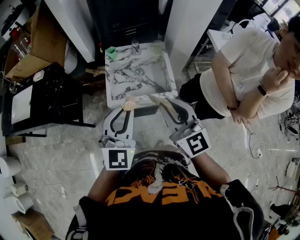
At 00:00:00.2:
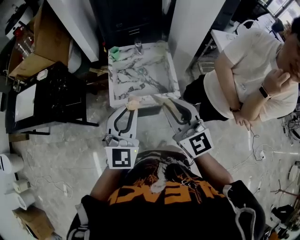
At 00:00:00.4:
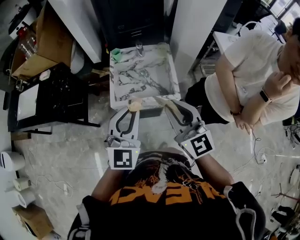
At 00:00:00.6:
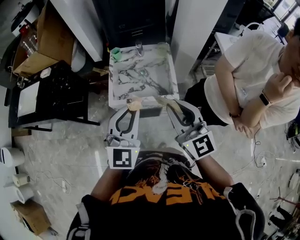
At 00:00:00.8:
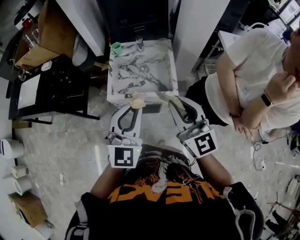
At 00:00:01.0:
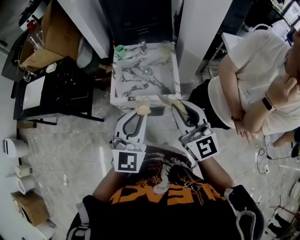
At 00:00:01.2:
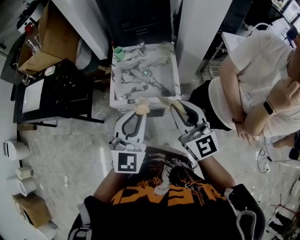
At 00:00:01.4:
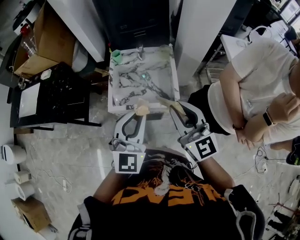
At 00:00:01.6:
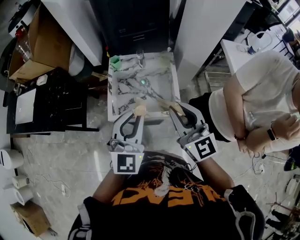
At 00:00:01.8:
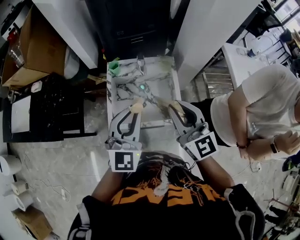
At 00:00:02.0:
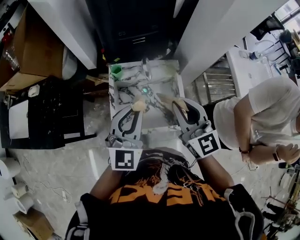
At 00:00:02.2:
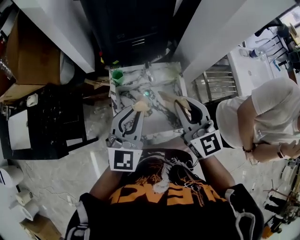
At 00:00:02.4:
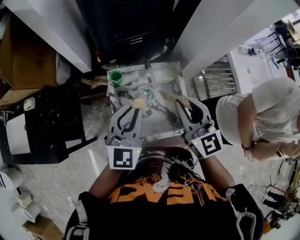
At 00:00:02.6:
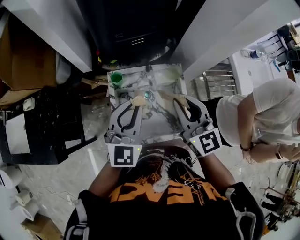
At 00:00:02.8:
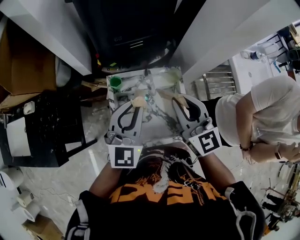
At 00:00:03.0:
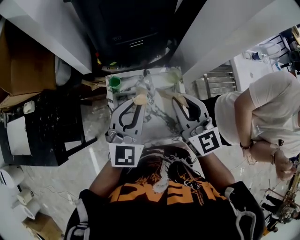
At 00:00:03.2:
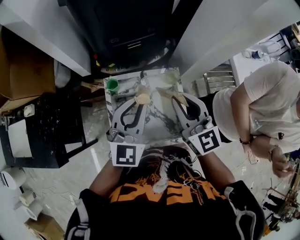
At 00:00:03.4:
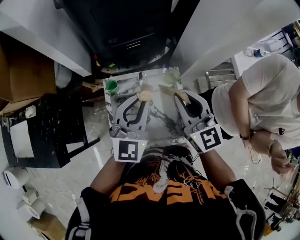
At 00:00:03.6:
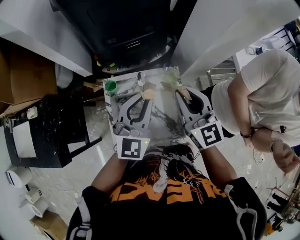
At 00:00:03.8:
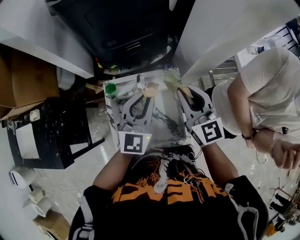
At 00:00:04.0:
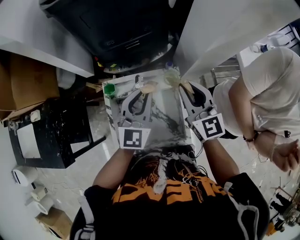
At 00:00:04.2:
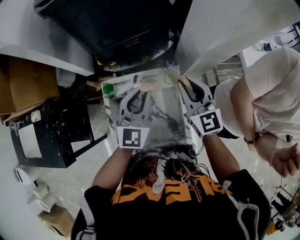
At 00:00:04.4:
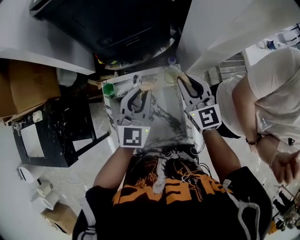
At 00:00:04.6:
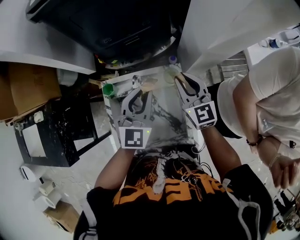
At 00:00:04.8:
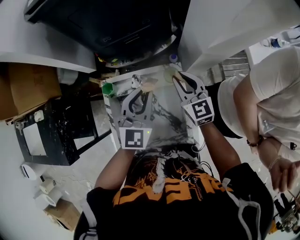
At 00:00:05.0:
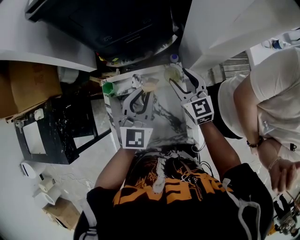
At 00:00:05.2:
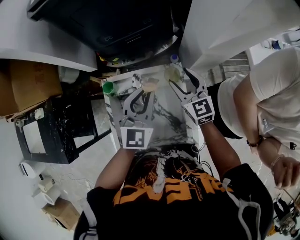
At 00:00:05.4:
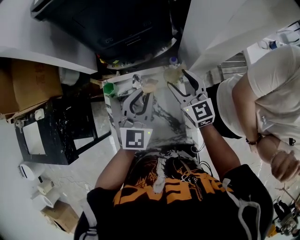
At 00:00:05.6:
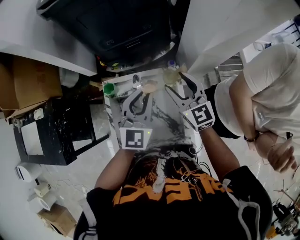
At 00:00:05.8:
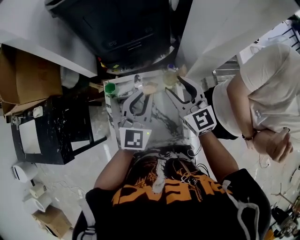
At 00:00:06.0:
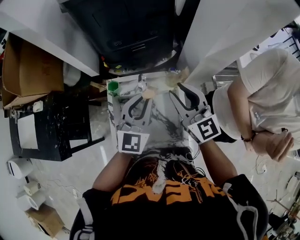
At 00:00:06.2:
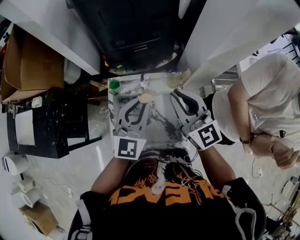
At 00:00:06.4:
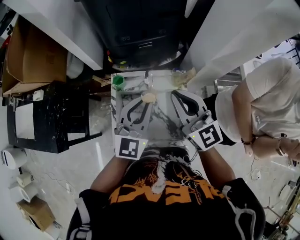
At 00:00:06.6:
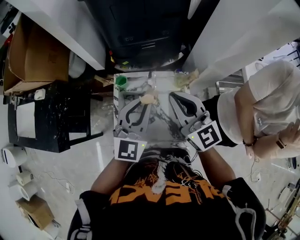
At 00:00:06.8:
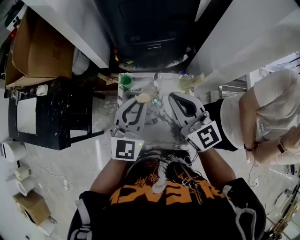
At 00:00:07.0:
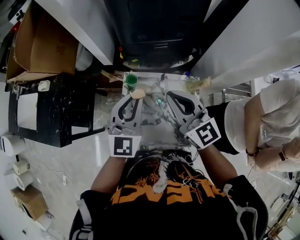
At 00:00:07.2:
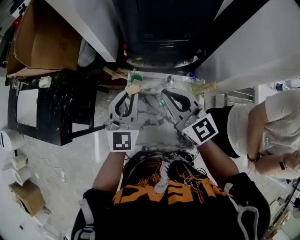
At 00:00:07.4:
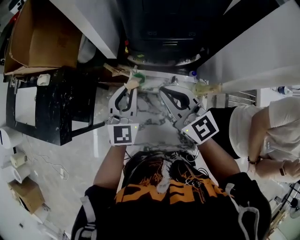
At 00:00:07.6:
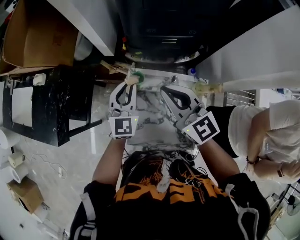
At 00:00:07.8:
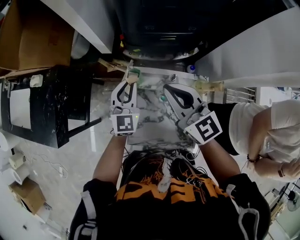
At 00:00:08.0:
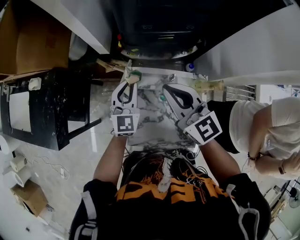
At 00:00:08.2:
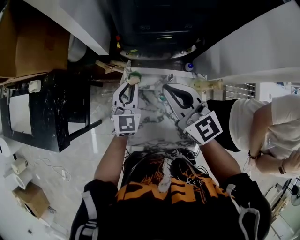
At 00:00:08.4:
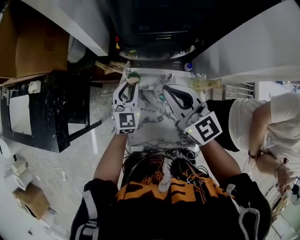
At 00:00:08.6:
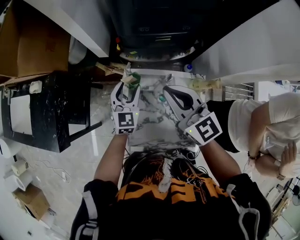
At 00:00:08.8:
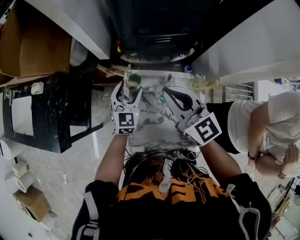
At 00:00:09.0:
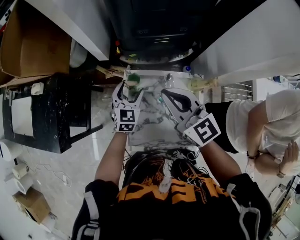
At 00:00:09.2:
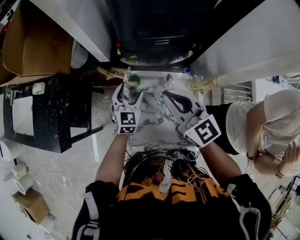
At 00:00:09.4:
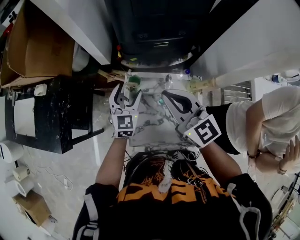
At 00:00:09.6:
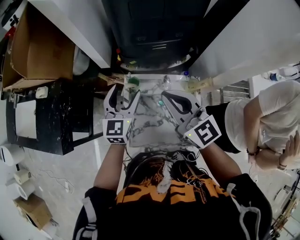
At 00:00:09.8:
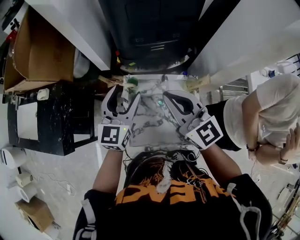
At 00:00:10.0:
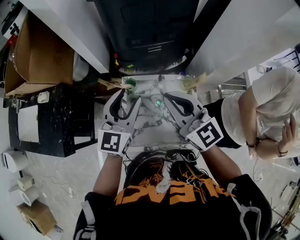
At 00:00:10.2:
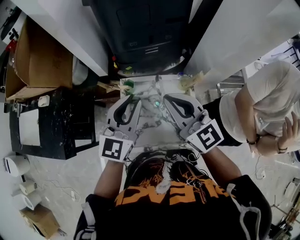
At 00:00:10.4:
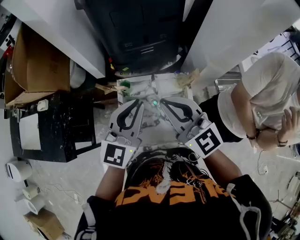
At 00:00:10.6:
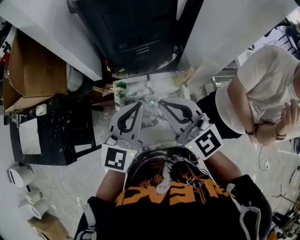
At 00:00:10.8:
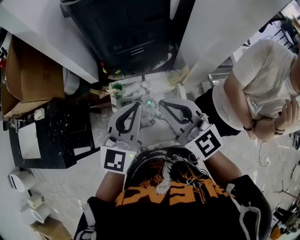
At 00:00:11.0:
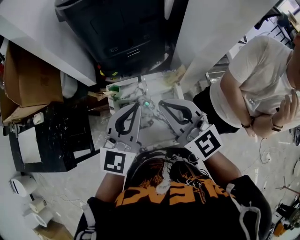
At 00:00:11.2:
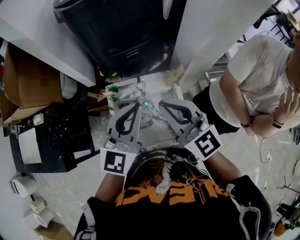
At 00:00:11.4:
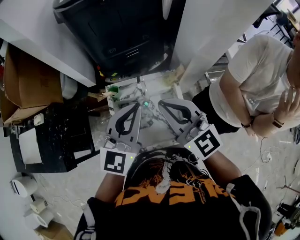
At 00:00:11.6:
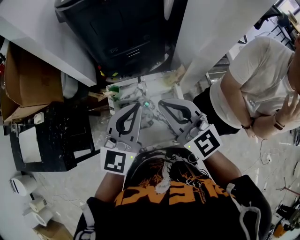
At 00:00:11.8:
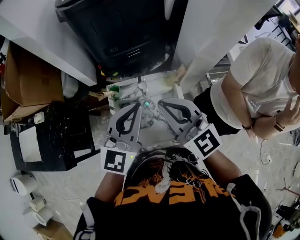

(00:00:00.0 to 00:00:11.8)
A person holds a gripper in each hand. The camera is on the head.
00:00:00.0 - 00:00:01.4: The grippers both shift to the right by about 10 cm.
00:00:01.4 - 00:00:03.0: Both grippers move forward, about 30 cm.
00:00:03.0 - 00:00:04.4: Both grippers move forward, to the right and downward, some 20 cm.
00:00:04.4 - 00:00:06.0: The right gripper heads upward, backward and to the left, covering some 10 cm, and opens, then closes once more. Meanwhile the left gripper travels backward by about 5 cm.
00:00:06.0 - 00:00:07.4: The left gripper shifts about 20 cm to the left and forward, and swivels about 20 degrees, while the right gripper shifts approximately 20 cm to the left, swivels about 20 degrees, and closes.
00:00:07.4 - 00:00:08.8: The left gripper goes approximately 15 cm downward, and opens its fingers.
00:00:08.8 - 00:00:10.4: The right gripper goes about 15 cm backward and upward; the left gripper heads upward and backward, covering some 30 cm, swivels approximately 30 degrees, and closes up.
00:00:10.4 - 00:00:11.8: The left gripper shifts by about 5 cm.

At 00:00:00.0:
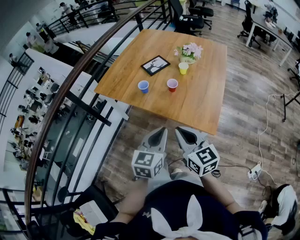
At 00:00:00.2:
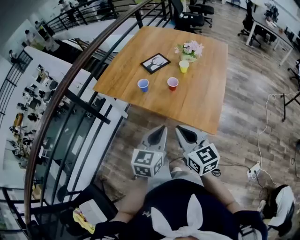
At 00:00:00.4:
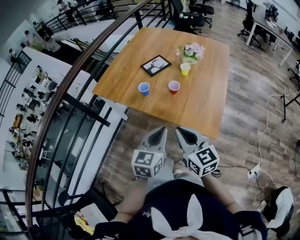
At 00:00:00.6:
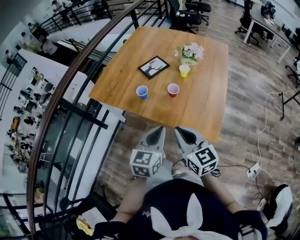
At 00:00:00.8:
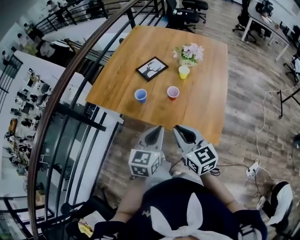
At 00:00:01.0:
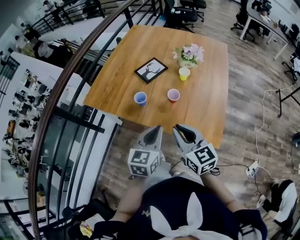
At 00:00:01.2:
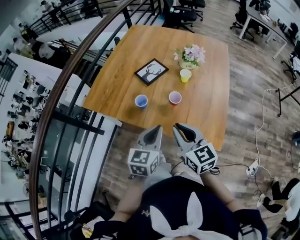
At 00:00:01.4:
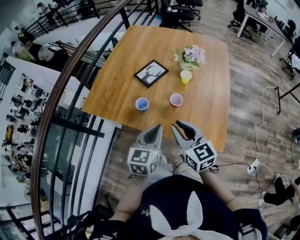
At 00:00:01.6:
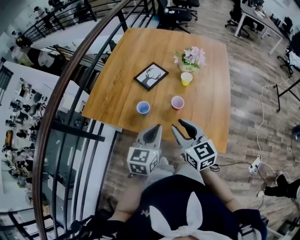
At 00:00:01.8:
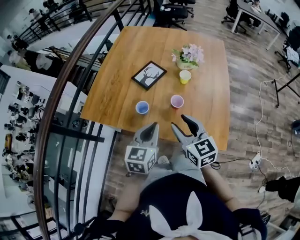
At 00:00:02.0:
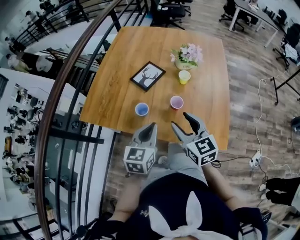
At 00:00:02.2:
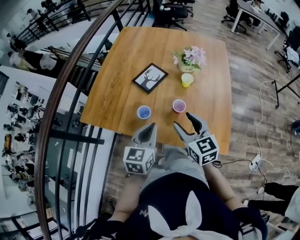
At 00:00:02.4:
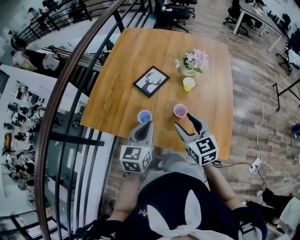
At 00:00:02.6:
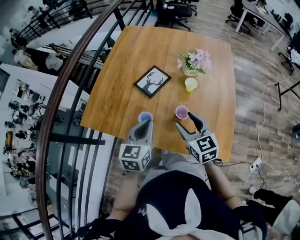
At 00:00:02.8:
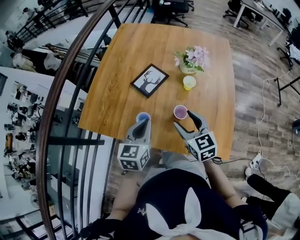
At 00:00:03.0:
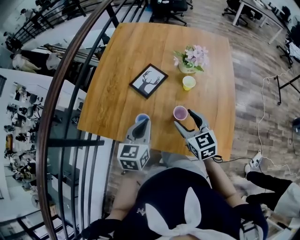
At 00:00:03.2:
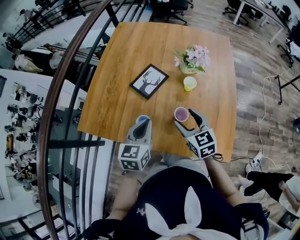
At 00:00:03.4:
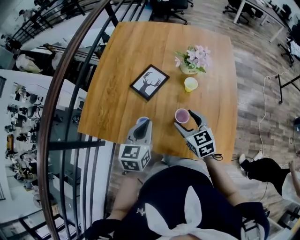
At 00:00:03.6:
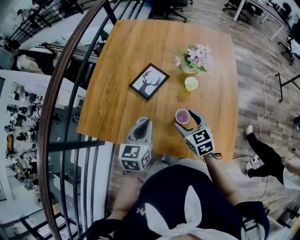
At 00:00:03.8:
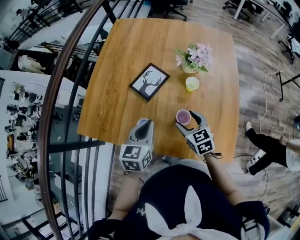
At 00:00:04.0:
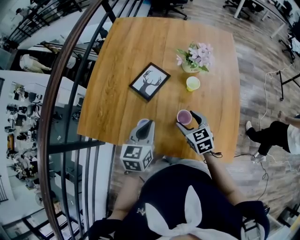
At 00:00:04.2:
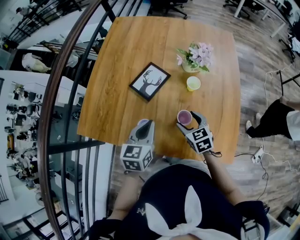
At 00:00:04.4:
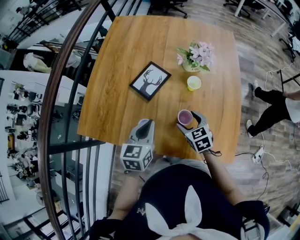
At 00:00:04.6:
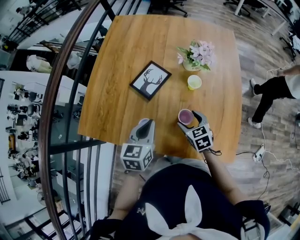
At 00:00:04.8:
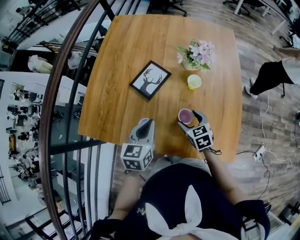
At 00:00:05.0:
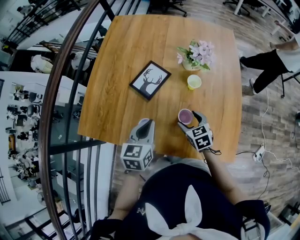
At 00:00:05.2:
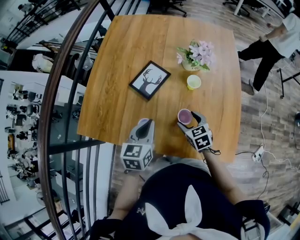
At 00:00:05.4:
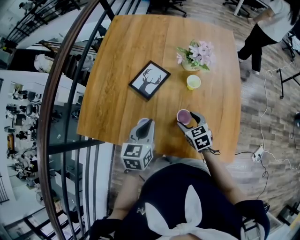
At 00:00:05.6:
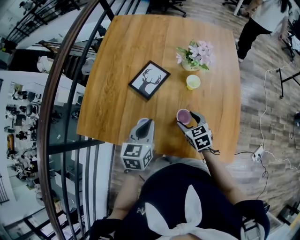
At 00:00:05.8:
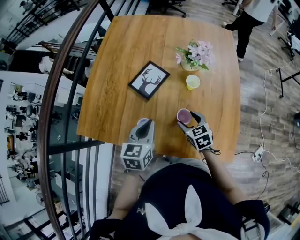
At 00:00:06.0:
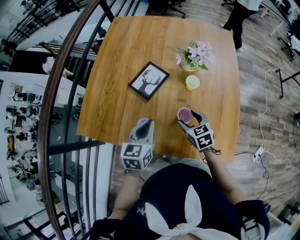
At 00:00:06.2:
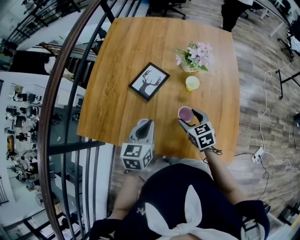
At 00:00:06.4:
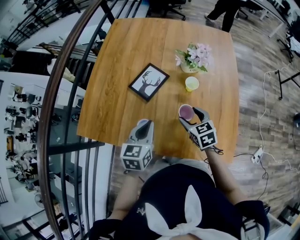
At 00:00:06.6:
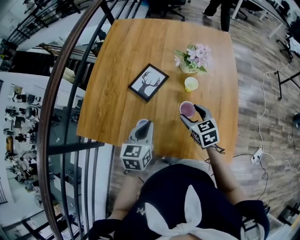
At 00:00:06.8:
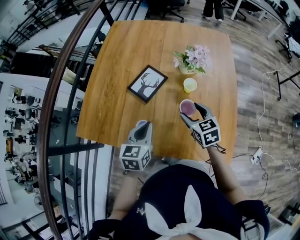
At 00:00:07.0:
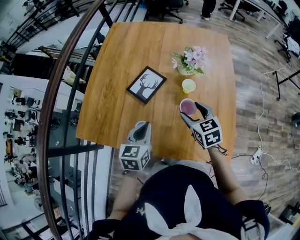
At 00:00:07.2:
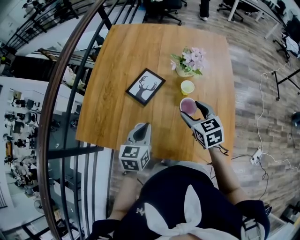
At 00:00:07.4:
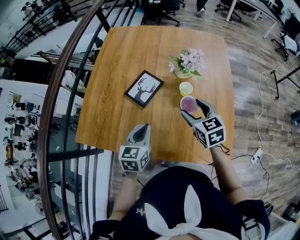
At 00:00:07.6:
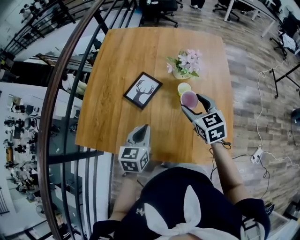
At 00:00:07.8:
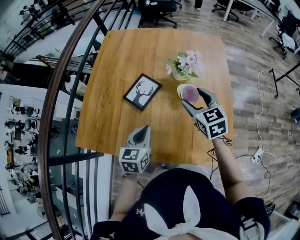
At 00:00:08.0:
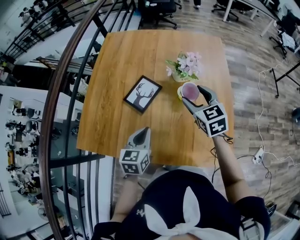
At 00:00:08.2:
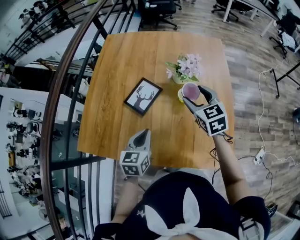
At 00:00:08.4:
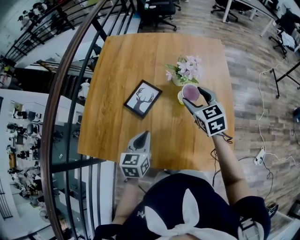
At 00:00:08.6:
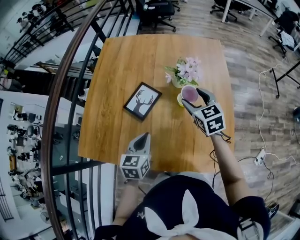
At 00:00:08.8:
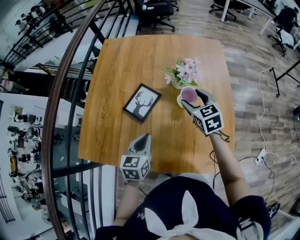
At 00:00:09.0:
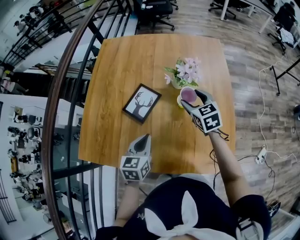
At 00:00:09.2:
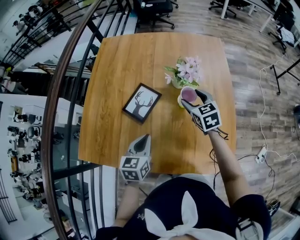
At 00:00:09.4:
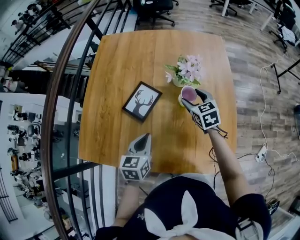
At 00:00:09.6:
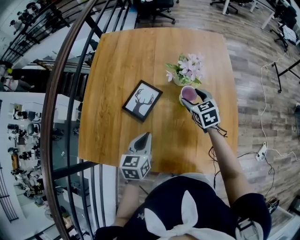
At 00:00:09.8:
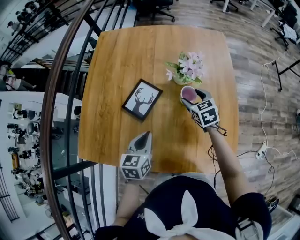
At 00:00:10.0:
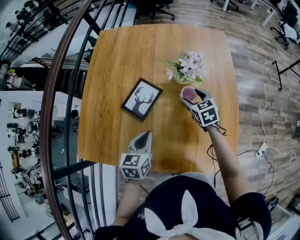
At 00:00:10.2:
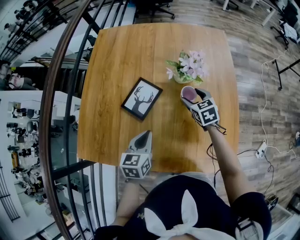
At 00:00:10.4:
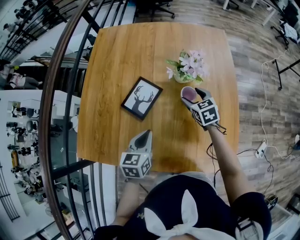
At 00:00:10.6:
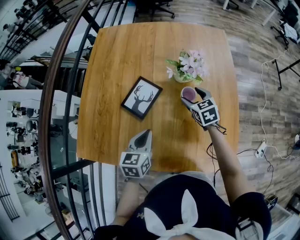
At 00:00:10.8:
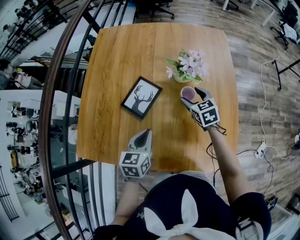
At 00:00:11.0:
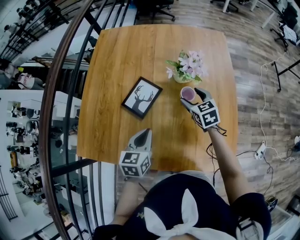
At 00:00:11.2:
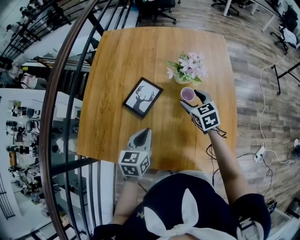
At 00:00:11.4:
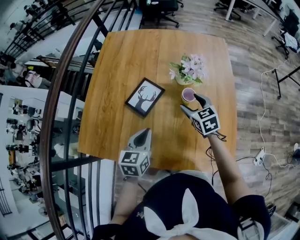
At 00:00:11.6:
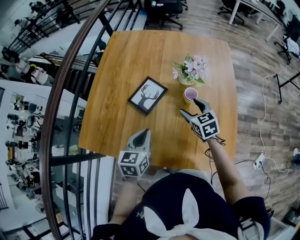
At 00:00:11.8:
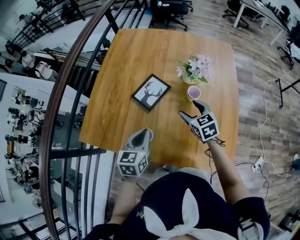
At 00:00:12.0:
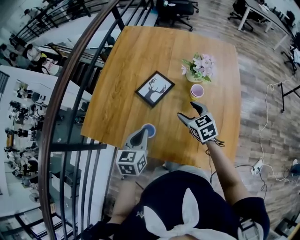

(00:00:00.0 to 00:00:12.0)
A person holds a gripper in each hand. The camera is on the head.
00:00:00.0 - 00:00:01.6: The two grippers go approximately 25 cm forward.
00:00:01.6 - 00:00:03.0: The left gripper moves forward, approximately 15 cm, while the right gripper moves forward and downward, roughly 15 cm, and opens up.
00:00:03.0 - 00:00:04.4: The right gripper shifts some 15 cm downward. The left gripper changes place by some 5 cm.
00:00:04.4 - 00:00:06.0: The grippers stay close to where they were, moving slightly.
00:00:06.0 - 00:00:07.6: The right gripper travels upward and forward by some 15 cm.
00:00:07.6 - 00:00:09.0: The right gripper moves forward, approximately 10 cm.
00:00:09.0 - 00:00:10.4: The right gripper goes roughly 10 cm downward.
00:00:10.4 - 00:00:12.0: The right gripper goes about 15 cm backward, to the left and upward; the left gripper shifts about 10 cm backward and to the left.
